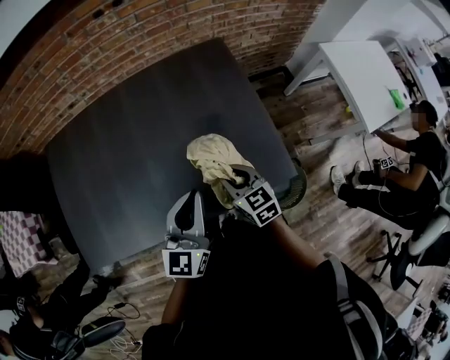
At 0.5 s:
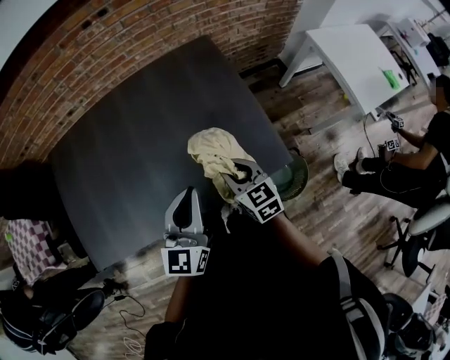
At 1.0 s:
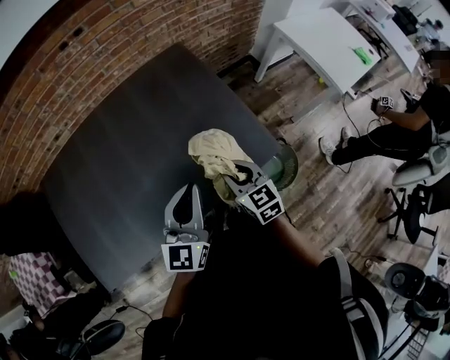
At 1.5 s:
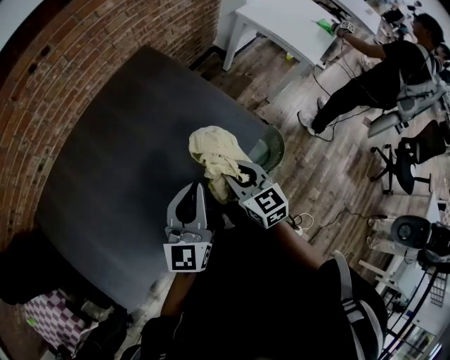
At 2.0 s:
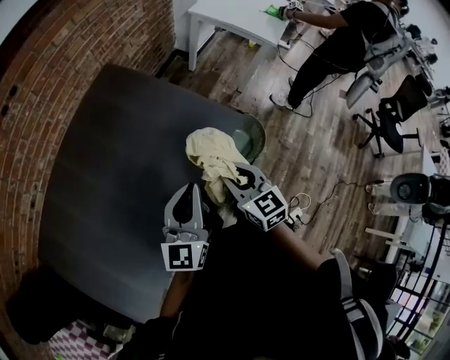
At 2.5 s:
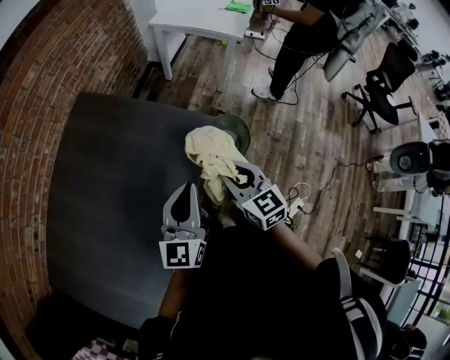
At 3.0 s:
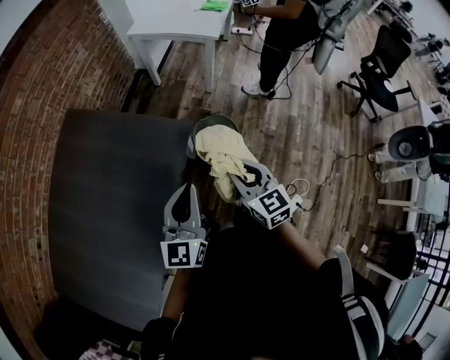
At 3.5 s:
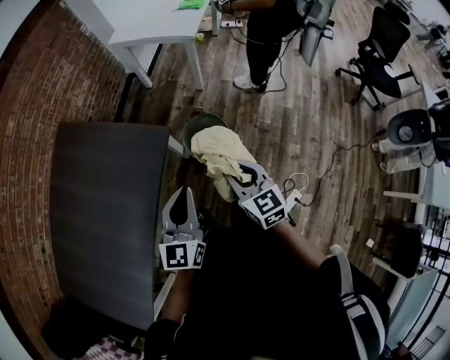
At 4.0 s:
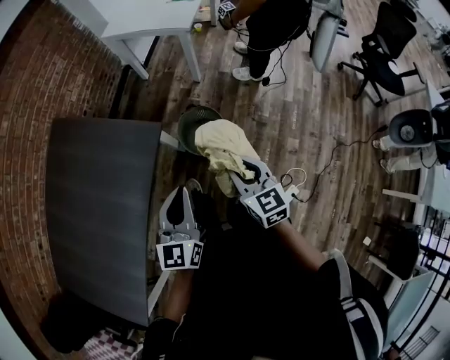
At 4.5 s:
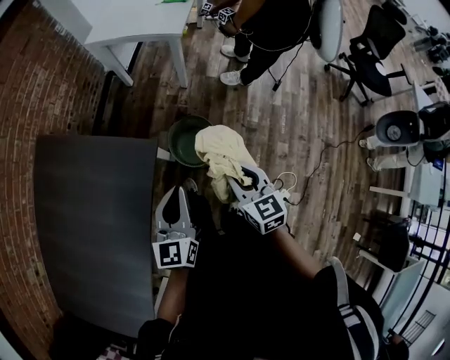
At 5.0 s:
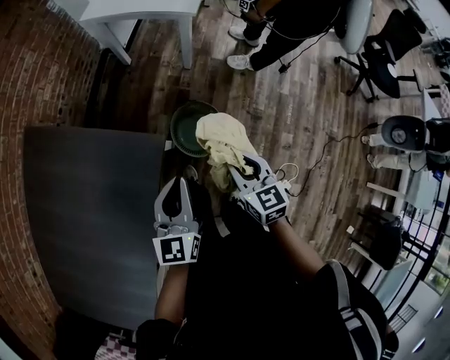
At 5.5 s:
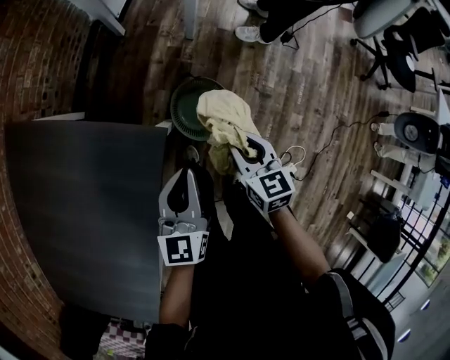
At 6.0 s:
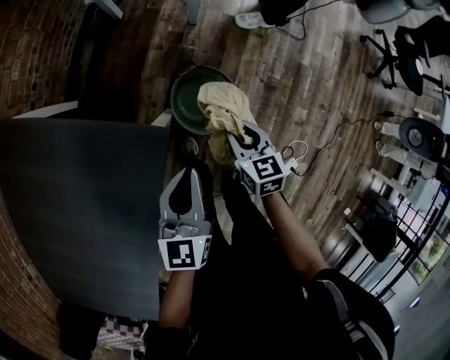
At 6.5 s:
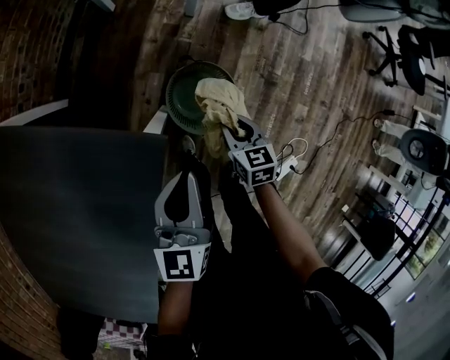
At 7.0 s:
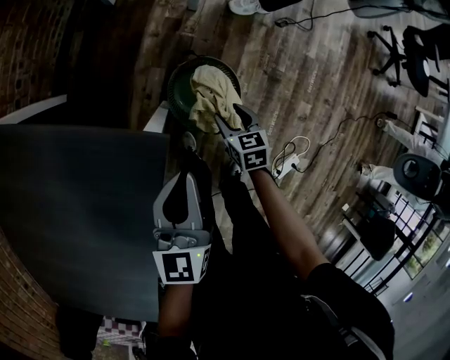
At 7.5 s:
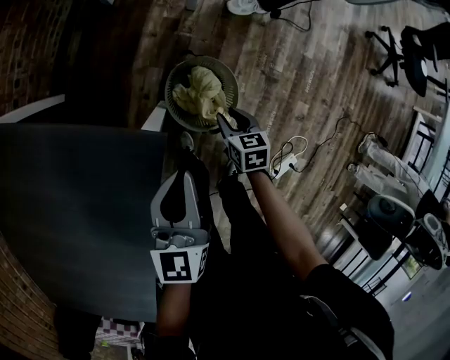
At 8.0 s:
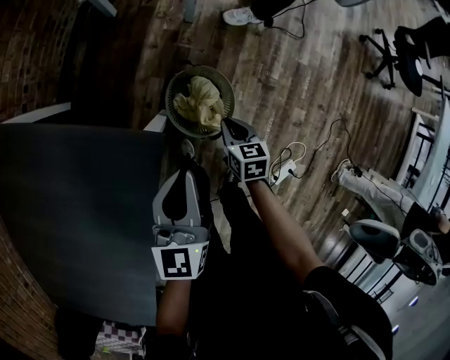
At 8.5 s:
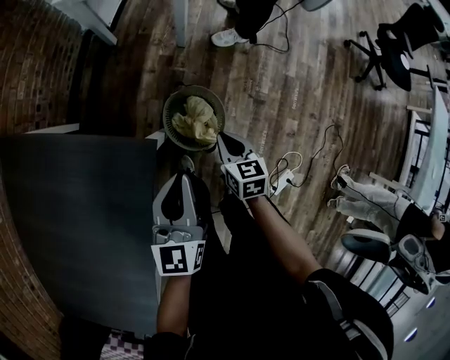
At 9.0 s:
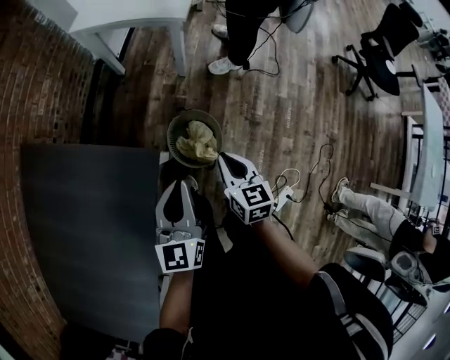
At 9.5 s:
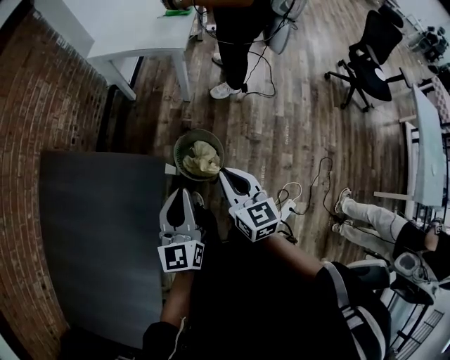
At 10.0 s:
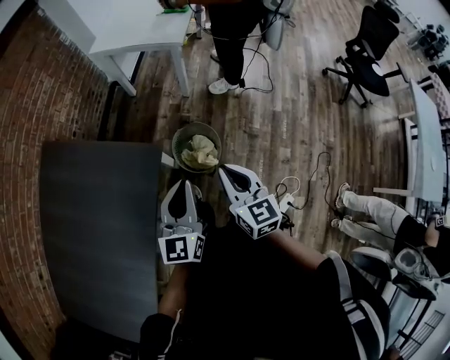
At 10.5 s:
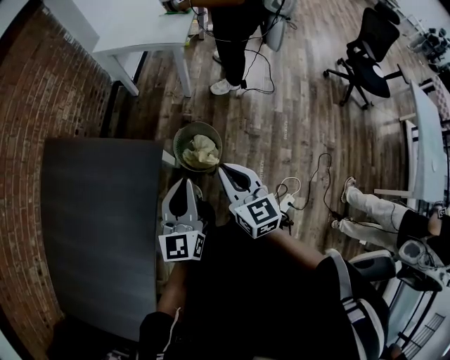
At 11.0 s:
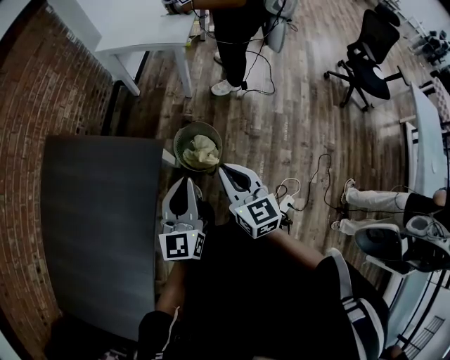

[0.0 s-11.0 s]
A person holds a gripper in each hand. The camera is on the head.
0.0 to 2.0 s: The right gripper shifts by roughly 15 cm, and swivels some 40 degrees, while the left gripper swivels some 40 degrees.
2.0 to 3.5 s: The two grippers go approximately 35 cm to the right.
3.5 to 5.5 s: Both grippers travel together forward and downward, about 25 cm.
5.5 to 7.5 s: The right gripper heads downward, covering some 25 cm, and turns by about 20 degrees. The left gripper moves downward, roughly 10 cm.
7.5 to 9.0 s: The left gripper moves upward, about 15 cm; the right gripper is displaced upward by about 30 cm, swivels some 20 degrees, and closes.
9.0 to 11.0 s: The right gripper is displaced upward and backward by roughly 20 cm. Meanwhile the left gripper travels backward and upward by approximately 15 cm.

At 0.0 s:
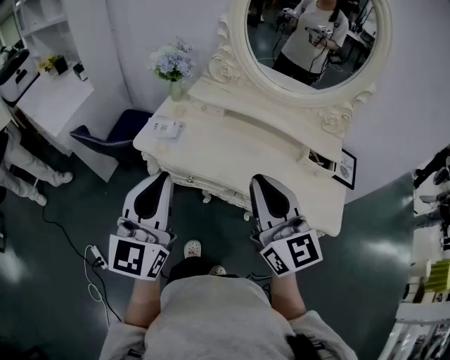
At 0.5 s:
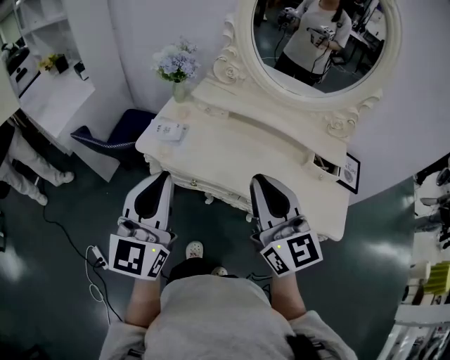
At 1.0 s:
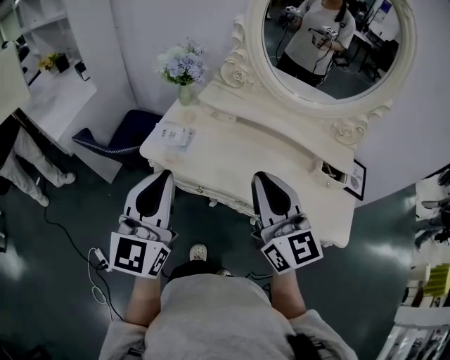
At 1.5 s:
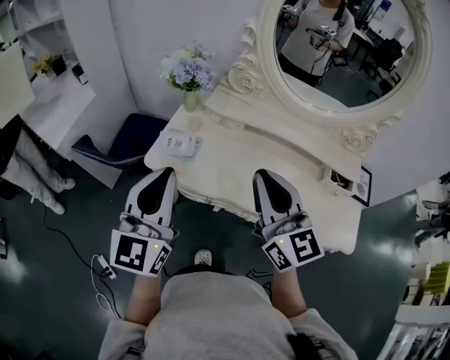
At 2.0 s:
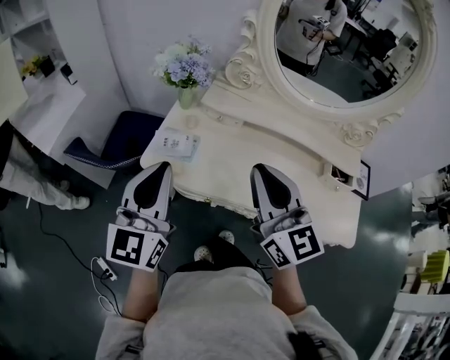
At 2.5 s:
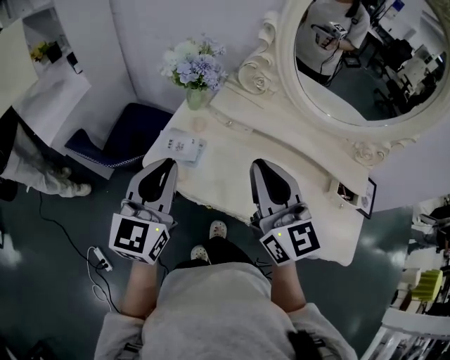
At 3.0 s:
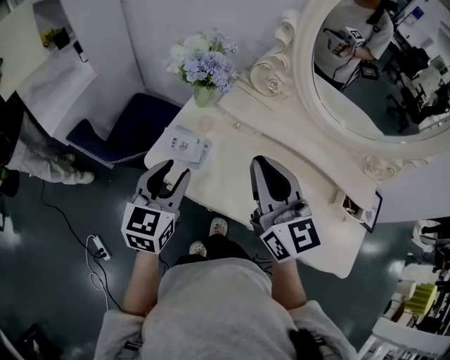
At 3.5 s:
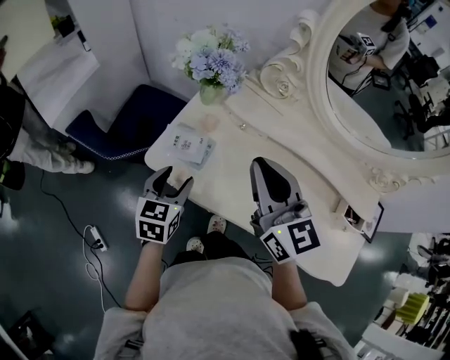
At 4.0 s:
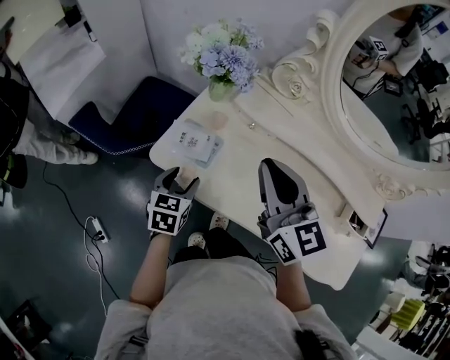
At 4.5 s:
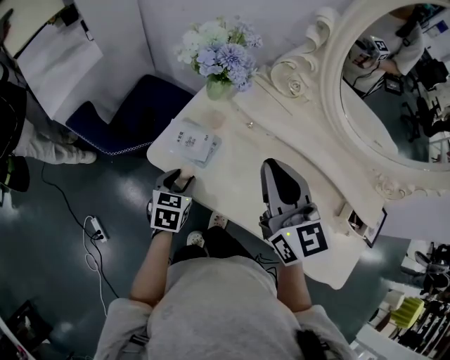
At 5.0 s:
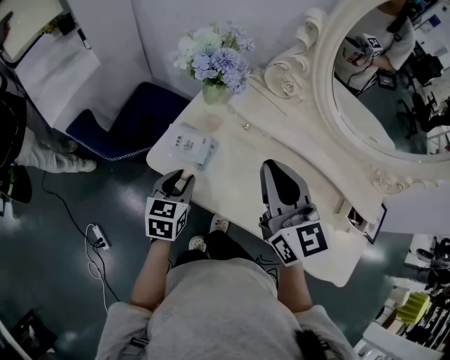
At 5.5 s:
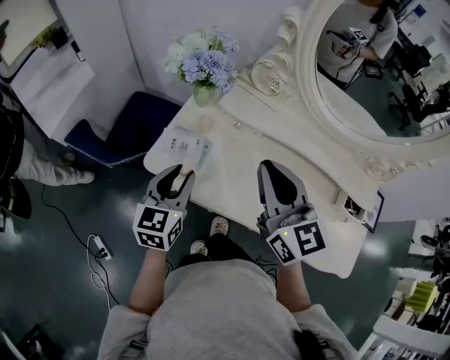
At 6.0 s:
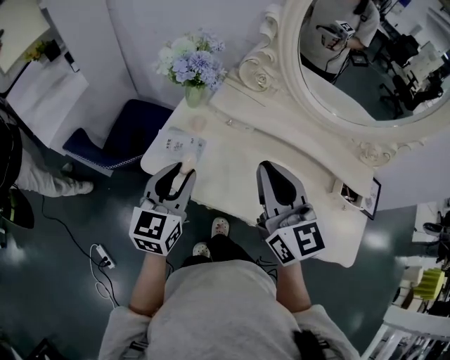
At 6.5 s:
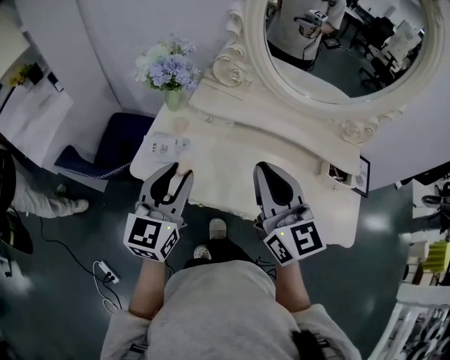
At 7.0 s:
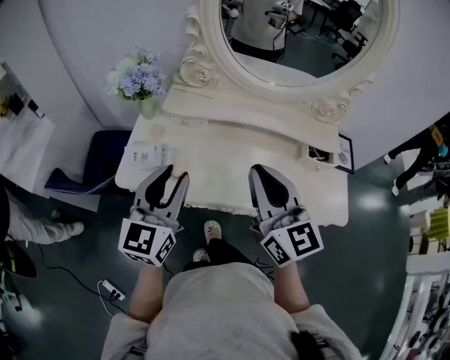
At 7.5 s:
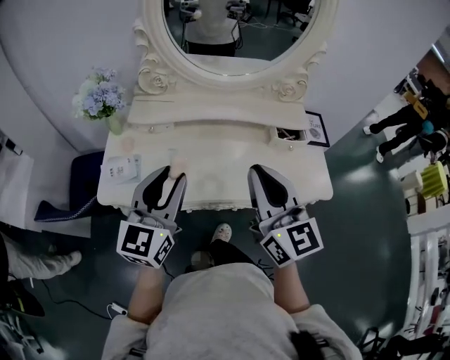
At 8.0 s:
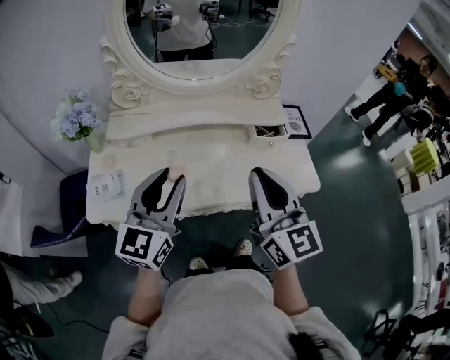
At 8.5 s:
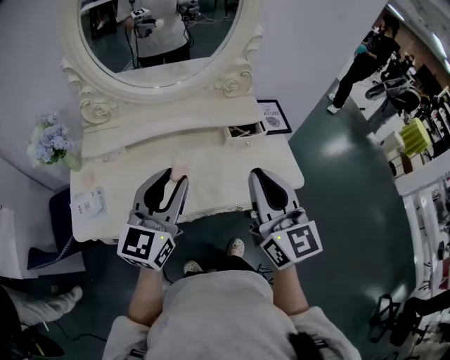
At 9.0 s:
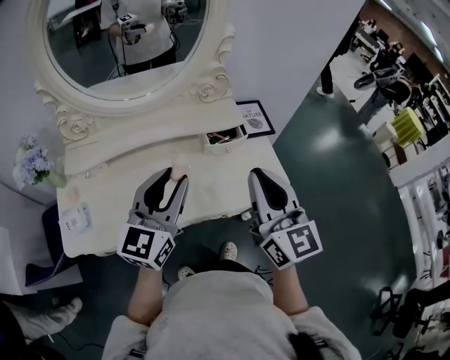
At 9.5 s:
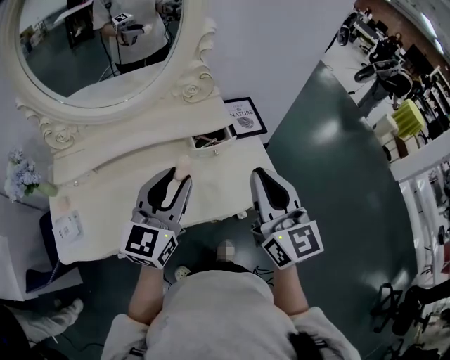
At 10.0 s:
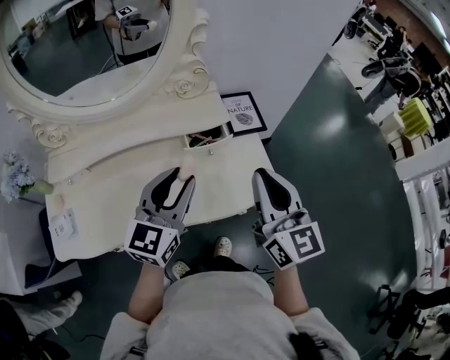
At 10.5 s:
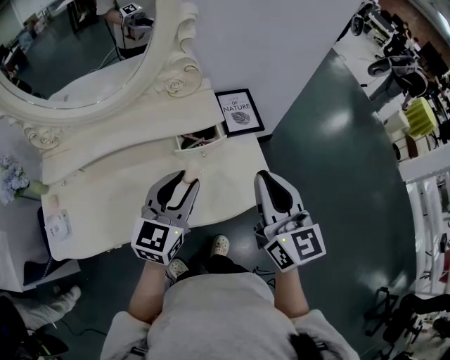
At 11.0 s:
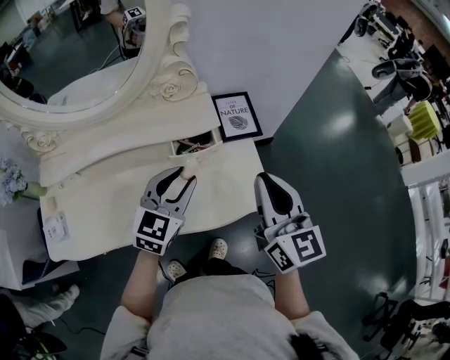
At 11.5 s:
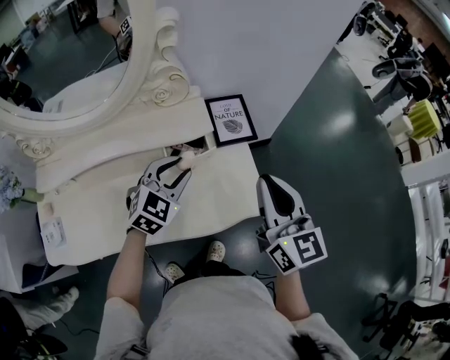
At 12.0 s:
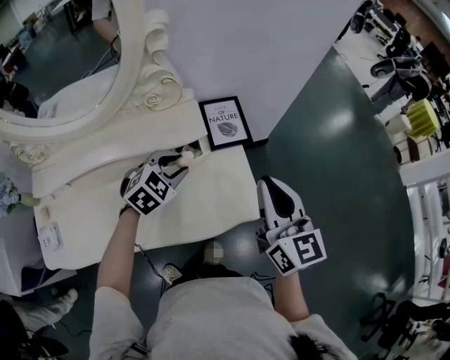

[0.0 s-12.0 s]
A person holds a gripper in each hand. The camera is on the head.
0.0 to 2.0 s: Both grippers travel together forward and to the left, approximately 15 cm.
2.0 to 4.0 s: The left gripper heads downward, covering roughly 30 cm, angles its fingers downward, by about 50 degrees, and opens up, while the right gripper heads forward and downward, covering approximately 15 cm.
4.0 to 6.0 s: The right gripper shifts approximately 5 cm backward. The left gripper shifts some 15 cm upward, rotates roughly 30 degrees, and closes.
6.0 to 8.0 s: The left gripper shifts by roughly 25 cm, and swivels some 40 degrees; the right gripper shifts by roughly 25 cm, and rotates some 30 degrees.
8.0 to 10.0 s: Both grippers travel together to the right and forward, about 25 cm.
10.0 to 12.0 s: The left gripper travels downward, forward and to the right by roughly 20 cm, and tilts its fingers some 40 degrees downward, while the right gripper shifts approximately 15 cm to the right and forward.

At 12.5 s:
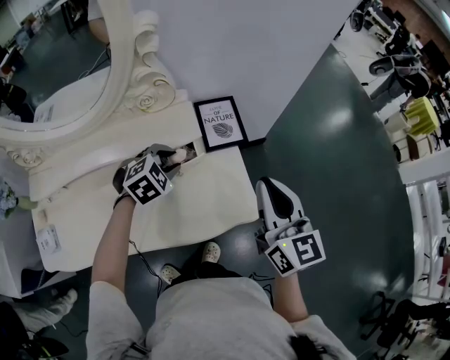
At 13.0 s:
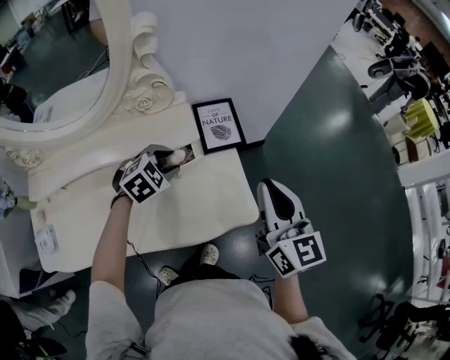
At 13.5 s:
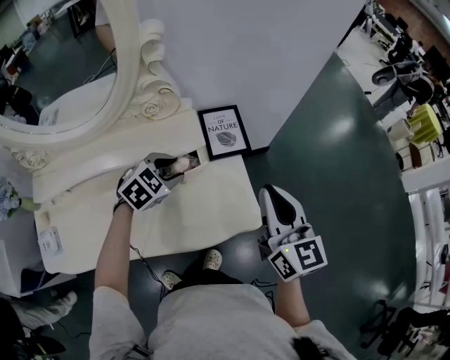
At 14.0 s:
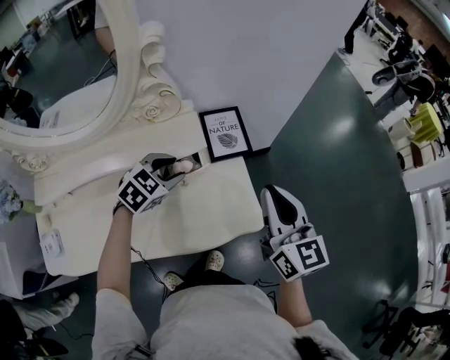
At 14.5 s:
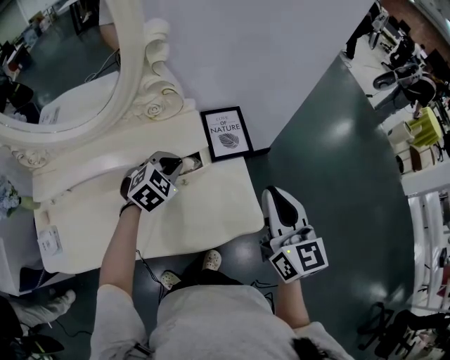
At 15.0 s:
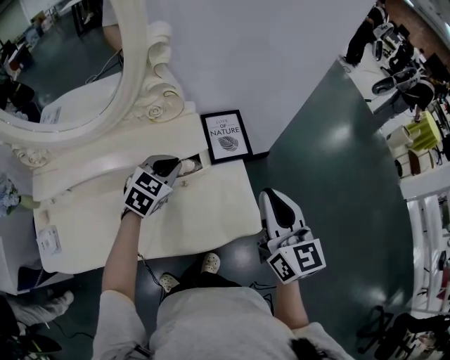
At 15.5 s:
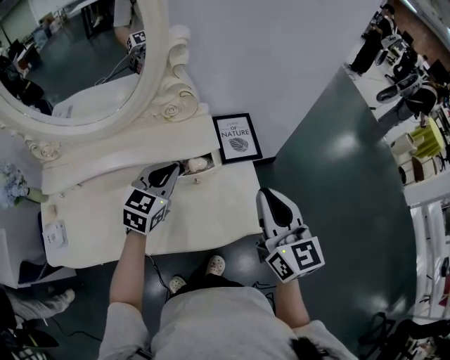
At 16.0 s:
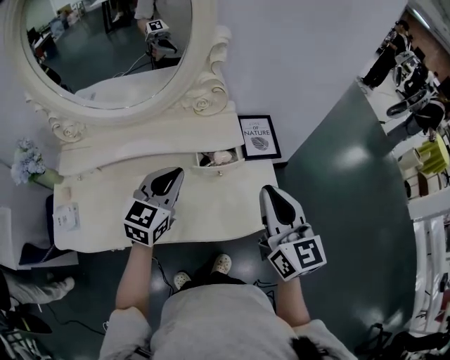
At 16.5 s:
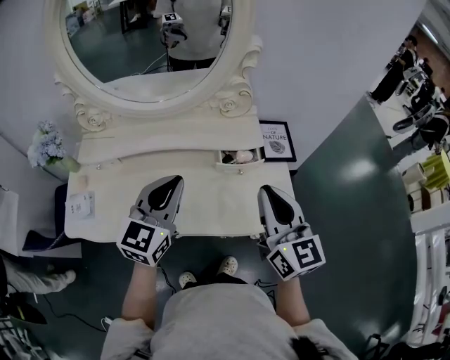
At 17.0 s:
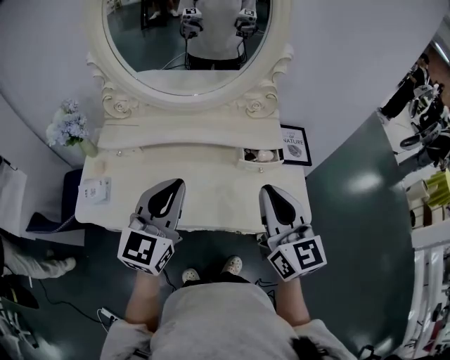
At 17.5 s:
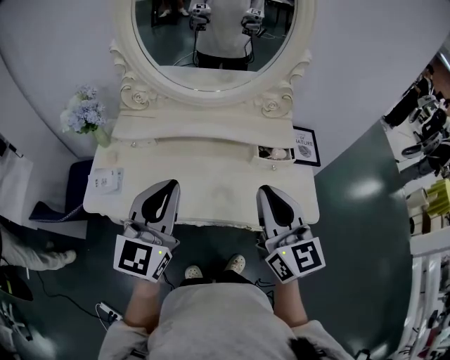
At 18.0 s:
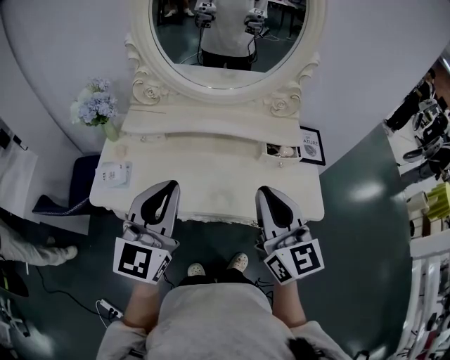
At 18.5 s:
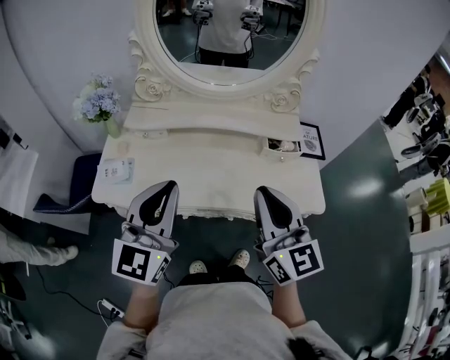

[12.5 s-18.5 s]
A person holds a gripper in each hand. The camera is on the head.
12.5 to 14.5 s: The left gripper closes up.
14.5 to 16.5 s: The right gripper moves to the left and backward, approximately 20 cm. The left gripper is displaced backward, upward and to the left by some 30 cm, and tilts its fingers approximately 40 degrees upward.
16.5 to 18.5 s: The right gripper goes some 20 cm to the left and backward. Meanwhile the left gripper heads to the left, backward and upward, covering roughly 25 cm.
